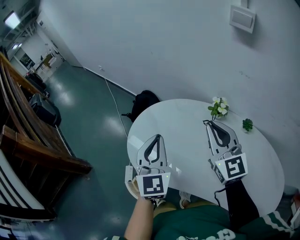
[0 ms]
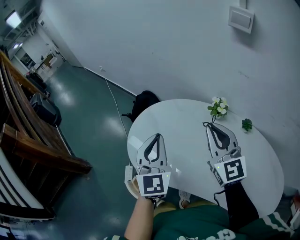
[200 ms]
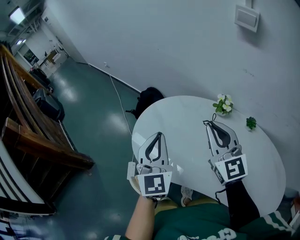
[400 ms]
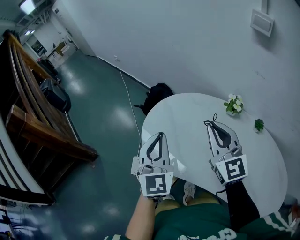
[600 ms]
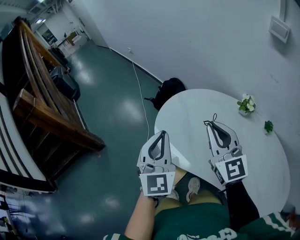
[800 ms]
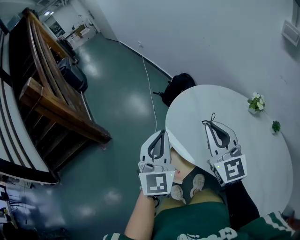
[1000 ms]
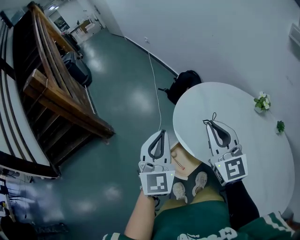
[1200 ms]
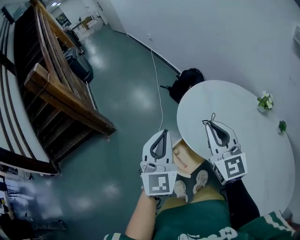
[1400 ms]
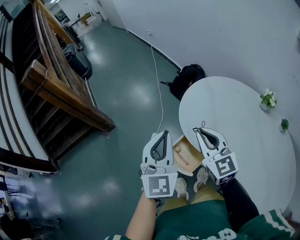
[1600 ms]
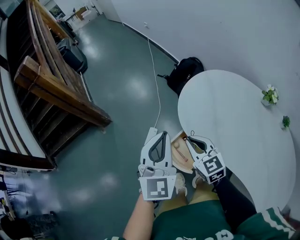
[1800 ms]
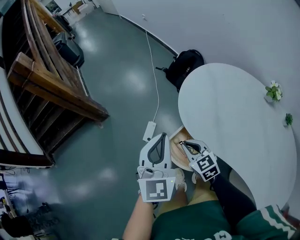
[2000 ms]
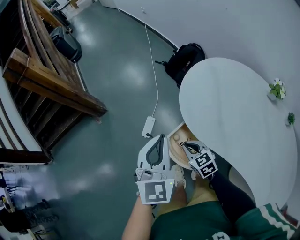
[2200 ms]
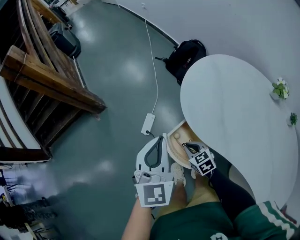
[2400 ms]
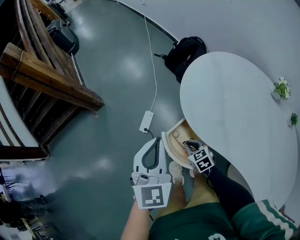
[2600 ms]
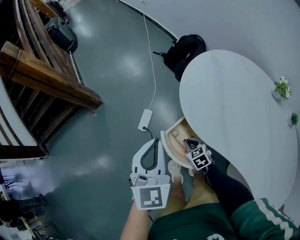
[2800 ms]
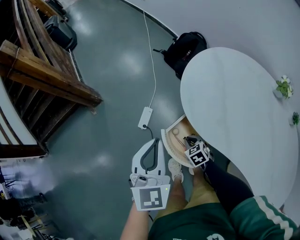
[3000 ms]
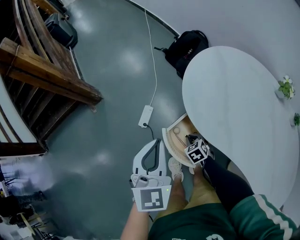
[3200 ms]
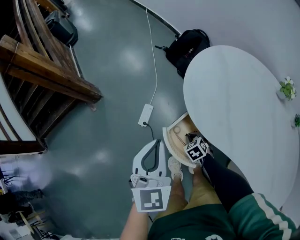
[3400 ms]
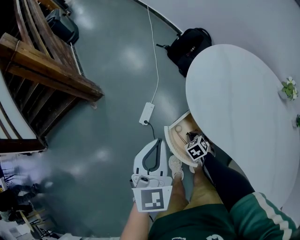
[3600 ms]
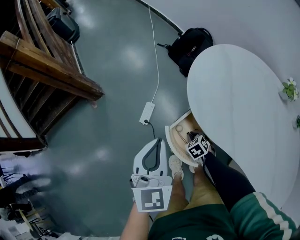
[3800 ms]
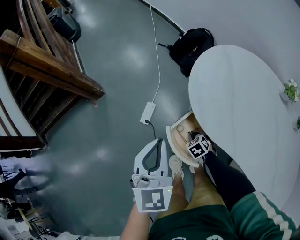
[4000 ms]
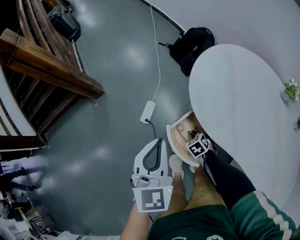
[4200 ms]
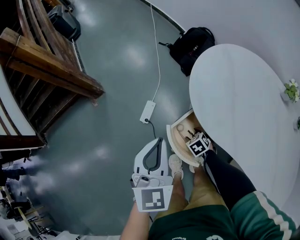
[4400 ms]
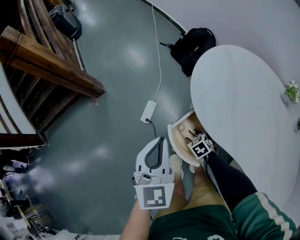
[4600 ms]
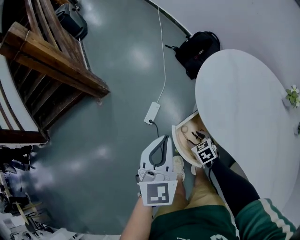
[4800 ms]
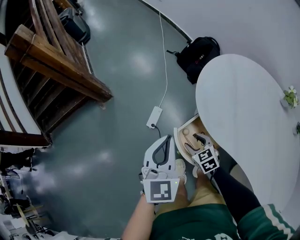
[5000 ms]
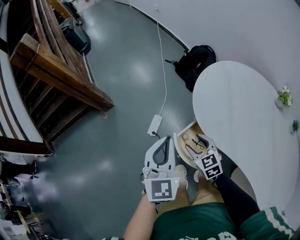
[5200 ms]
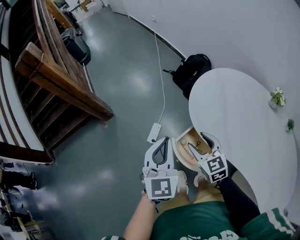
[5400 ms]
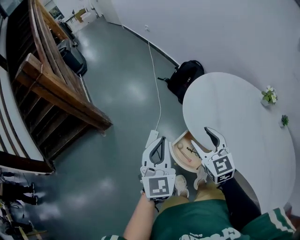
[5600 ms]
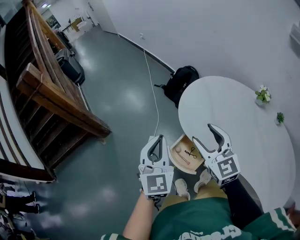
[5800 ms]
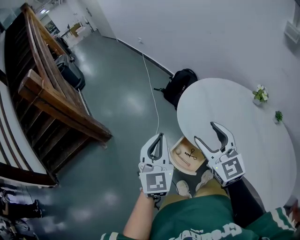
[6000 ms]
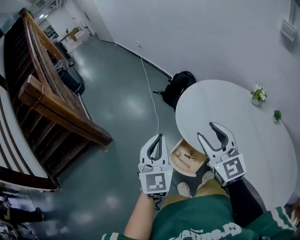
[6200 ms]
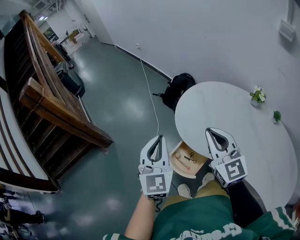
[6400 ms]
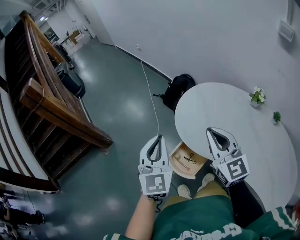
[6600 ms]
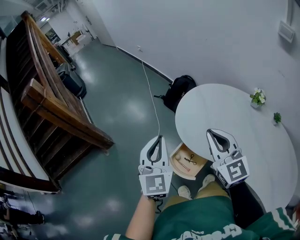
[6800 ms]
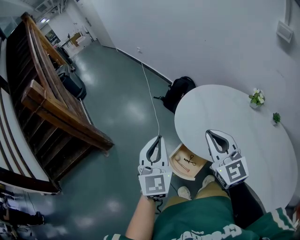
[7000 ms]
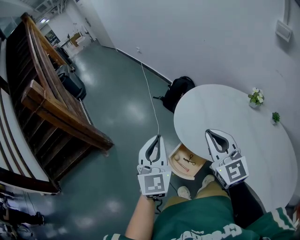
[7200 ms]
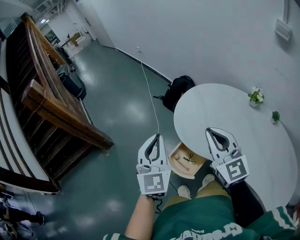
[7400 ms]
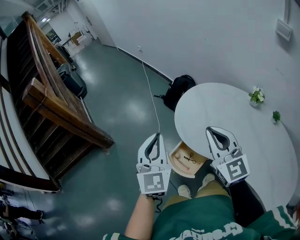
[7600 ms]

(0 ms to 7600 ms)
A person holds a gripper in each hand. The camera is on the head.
0 ms - 1600 ms: The right gripper goes approximately 35 cm to the left, and turns by approximately 30 degrees. Meanwhile the left gripper shifts roughly 30 cm to the left and backward.
1600 ms - 3000 ms: The right gripper is displaced downward by about 40 cm, and tilts its fingers about 50 degrees downward. Meanwhile the left gripper moves downward, about 15 cm.
3000 ms - 4600 ms: The right gripper opens its fingers.
4600 ms - 6000 ms: The left gripper shifts about 15 cm upward. Meanwhile the right gripper travels upward by approximately 50 cm, and tips its fingers upward by roughly 60 degrees.
6000 ms - 7600 ms: The right gripper ends up some 5 cm from where it was, and closes.

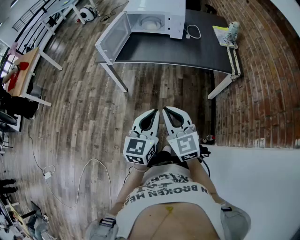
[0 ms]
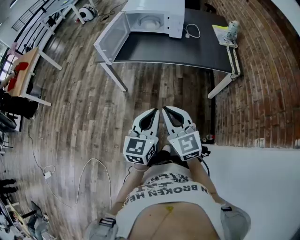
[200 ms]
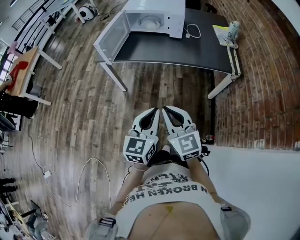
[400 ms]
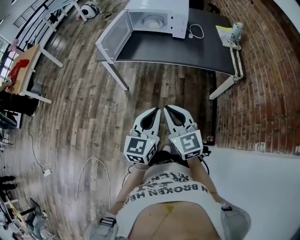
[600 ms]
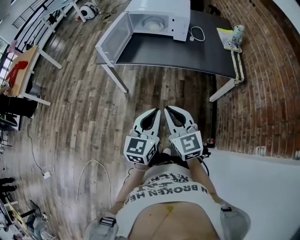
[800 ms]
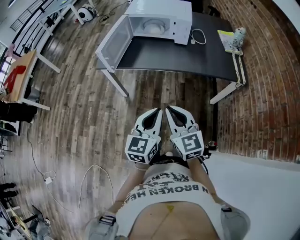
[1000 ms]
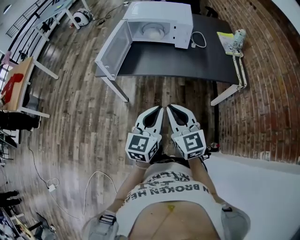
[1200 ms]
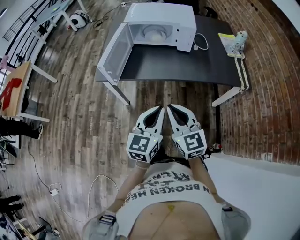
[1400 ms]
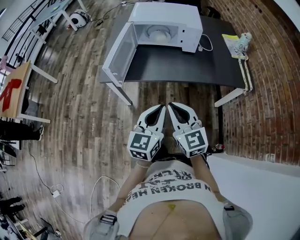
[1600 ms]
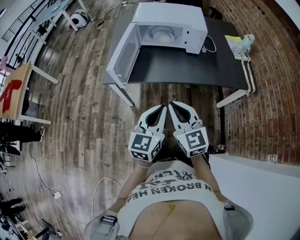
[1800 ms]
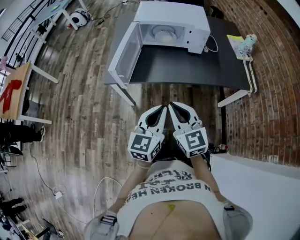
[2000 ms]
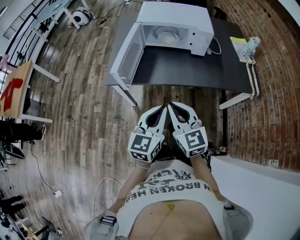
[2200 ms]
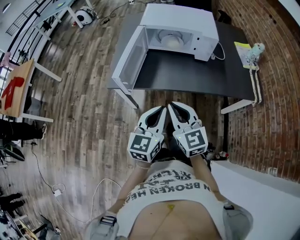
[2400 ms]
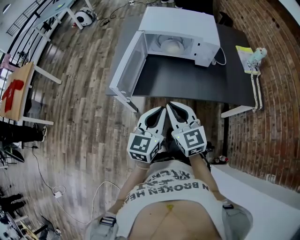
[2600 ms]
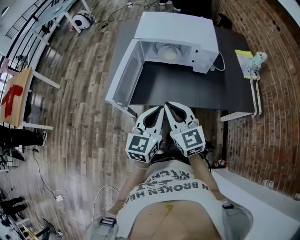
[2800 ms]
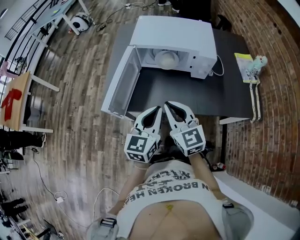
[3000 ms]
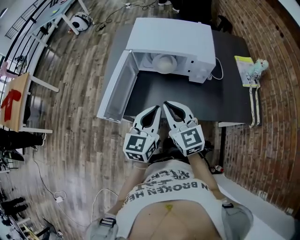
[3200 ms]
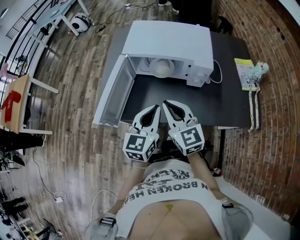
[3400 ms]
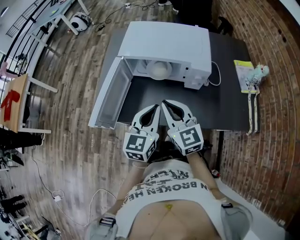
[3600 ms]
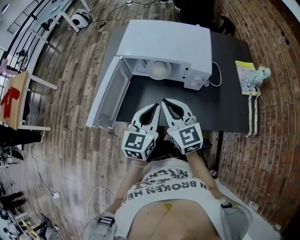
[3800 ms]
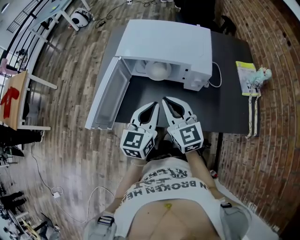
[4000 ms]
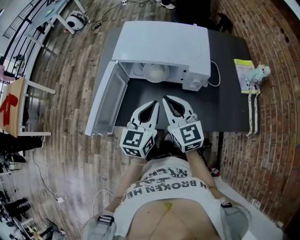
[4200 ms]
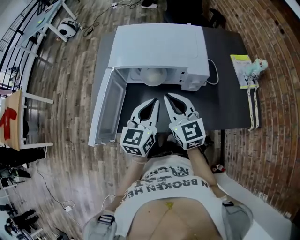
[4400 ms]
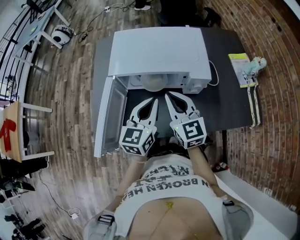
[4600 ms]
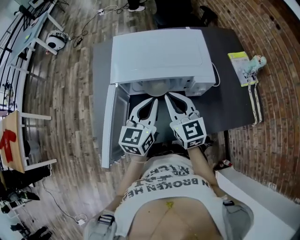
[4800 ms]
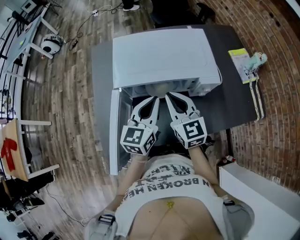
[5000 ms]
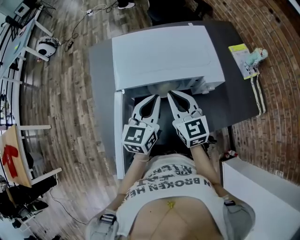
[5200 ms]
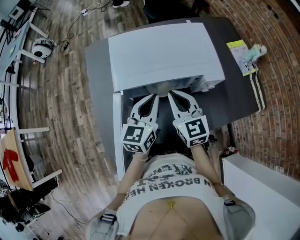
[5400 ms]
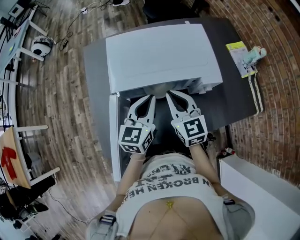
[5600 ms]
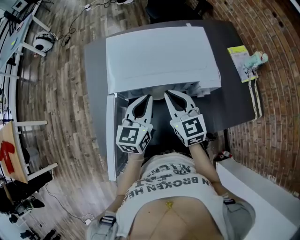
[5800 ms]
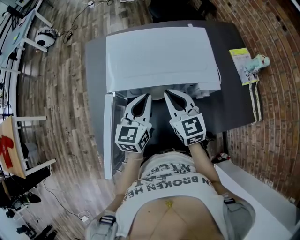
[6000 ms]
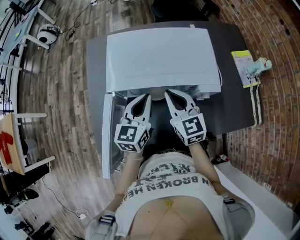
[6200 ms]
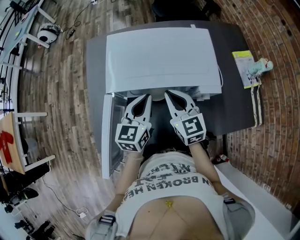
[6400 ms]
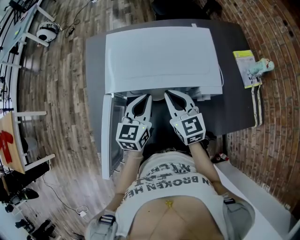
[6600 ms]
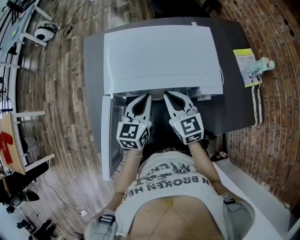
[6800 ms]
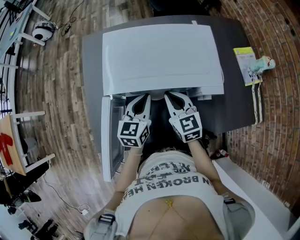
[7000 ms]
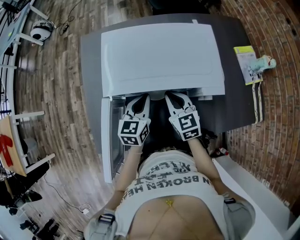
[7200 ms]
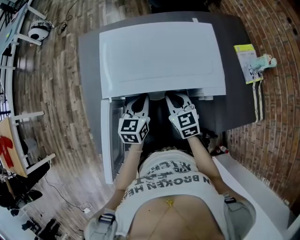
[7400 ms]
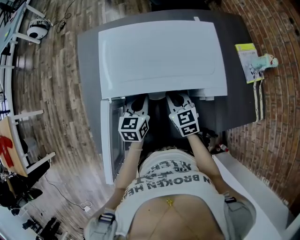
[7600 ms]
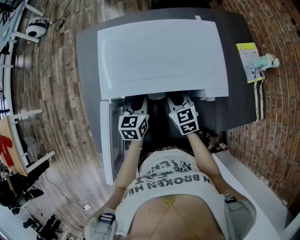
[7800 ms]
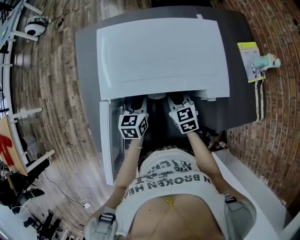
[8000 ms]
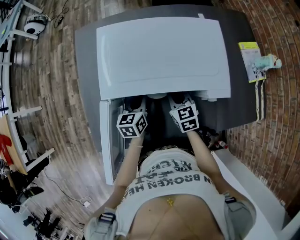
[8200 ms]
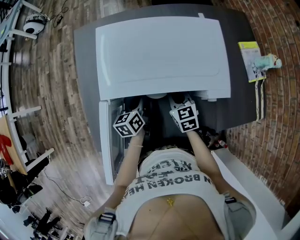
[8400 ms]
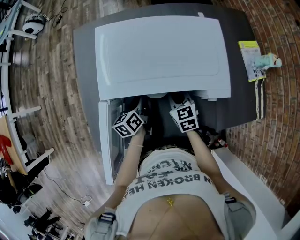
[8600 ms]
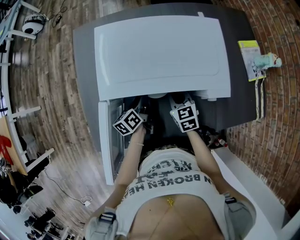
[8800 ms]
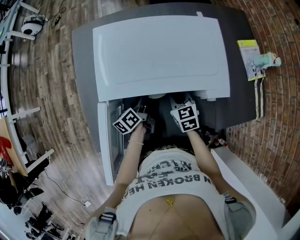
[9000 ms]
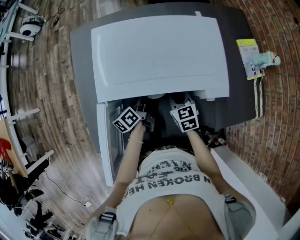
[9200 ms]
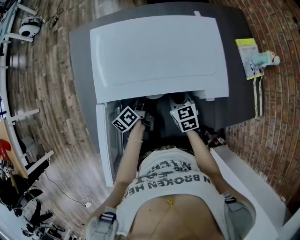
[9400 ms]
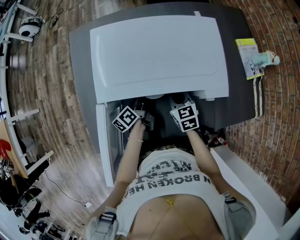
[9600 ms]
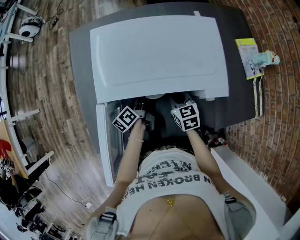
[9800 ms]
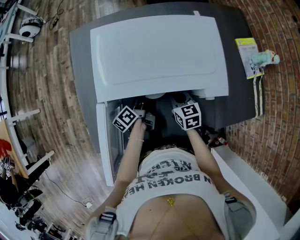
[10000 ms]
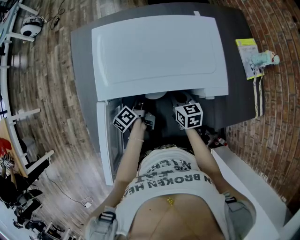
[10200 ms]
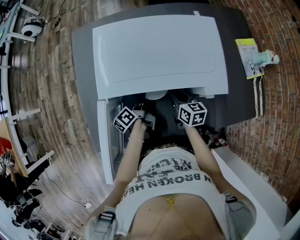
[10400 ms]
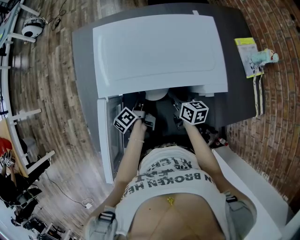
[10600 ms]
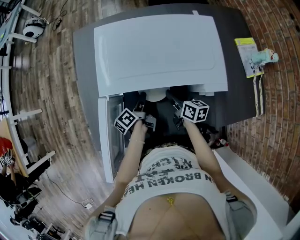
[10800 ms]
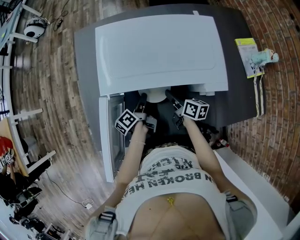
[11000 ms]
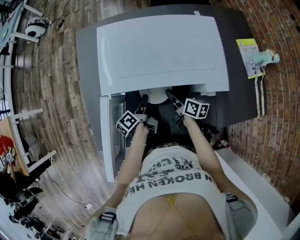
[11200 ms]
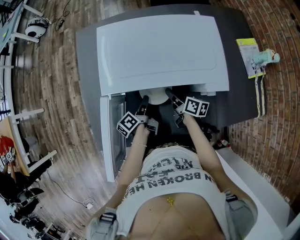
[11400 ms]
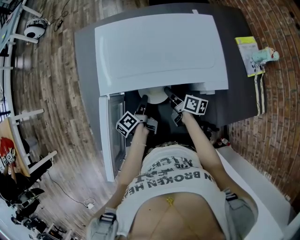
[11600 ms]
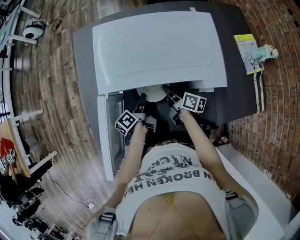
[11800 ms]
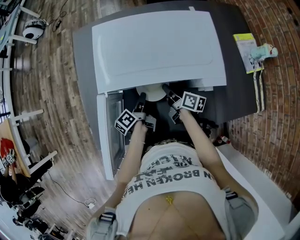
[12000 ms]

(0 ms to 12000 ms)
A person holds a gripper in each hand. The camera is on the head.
0 ms - 1600 ms: Both grippers travel together forward and to the left, roughly 25 cm.
1600 ms - 3000 ms: Both grippers travel together forward, roughly 25 cm.
3000 ms - 4400 ms: The grippers both shift forward and to the right by some 20 cm.
4400 ms - 6000 ms: The right gripper shifts approximately 10 cm forward, while the left gripper travels forward and to the left by about 15 cm.
6000 ms - 7600 ms: The grippers both shift downward by about 15 cm.
7600 ms - 9000 ms: Both grippers move downward, approximately 5 cm. The left gripper twists approximately 50 degrees counterclockwise, seen from behind, and opens up.
9000 ms - 10400 ms: The right gripper turns by about 30 degrees.
10400 ms - 12000 ms: The right gripper turns by some 30 degrees.

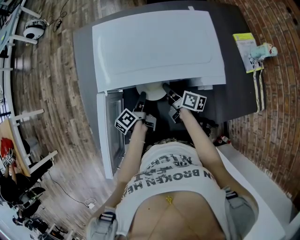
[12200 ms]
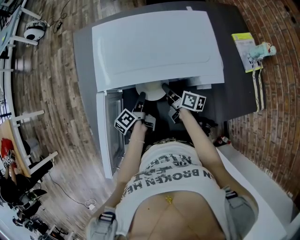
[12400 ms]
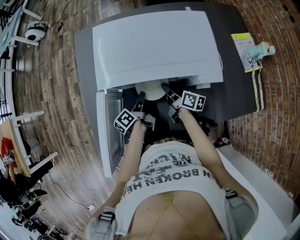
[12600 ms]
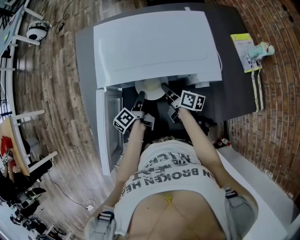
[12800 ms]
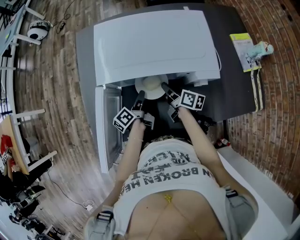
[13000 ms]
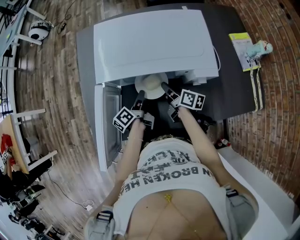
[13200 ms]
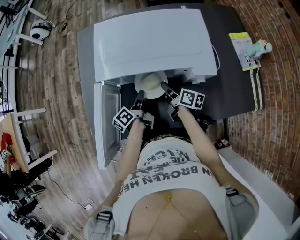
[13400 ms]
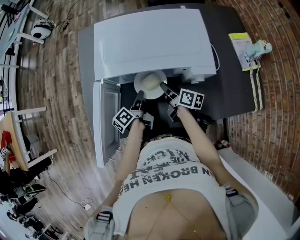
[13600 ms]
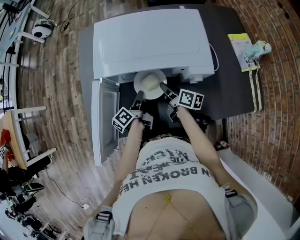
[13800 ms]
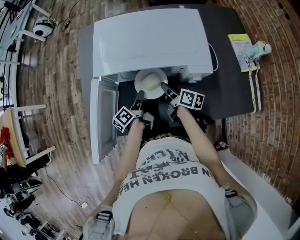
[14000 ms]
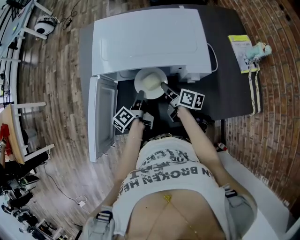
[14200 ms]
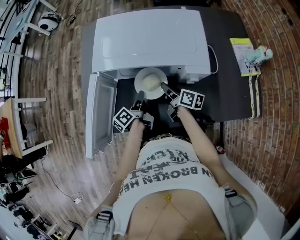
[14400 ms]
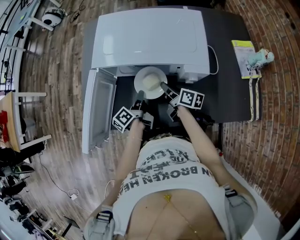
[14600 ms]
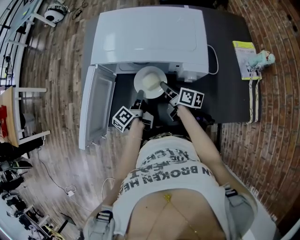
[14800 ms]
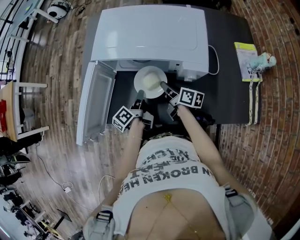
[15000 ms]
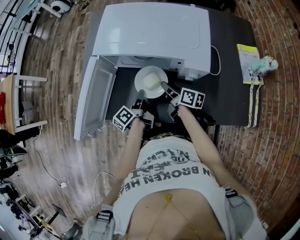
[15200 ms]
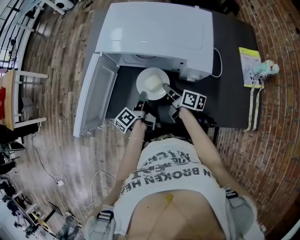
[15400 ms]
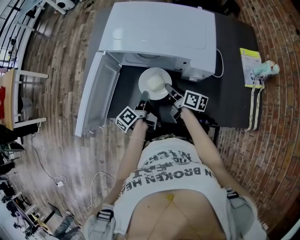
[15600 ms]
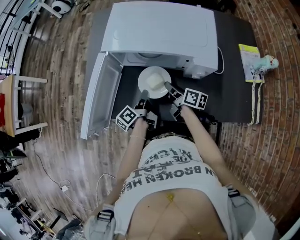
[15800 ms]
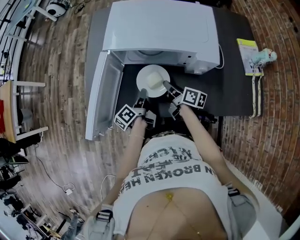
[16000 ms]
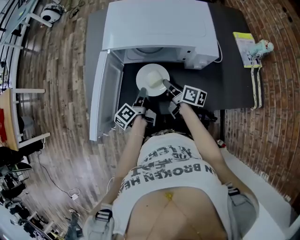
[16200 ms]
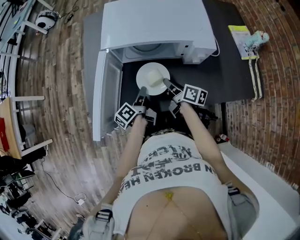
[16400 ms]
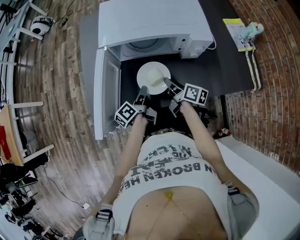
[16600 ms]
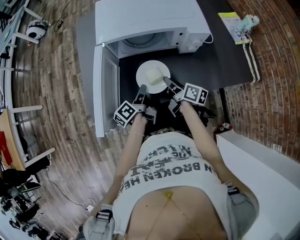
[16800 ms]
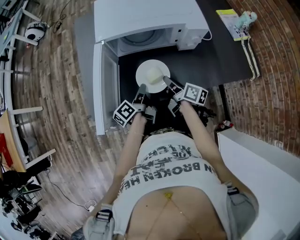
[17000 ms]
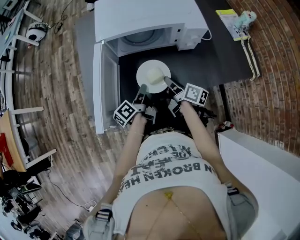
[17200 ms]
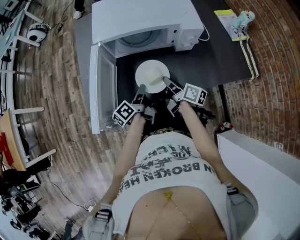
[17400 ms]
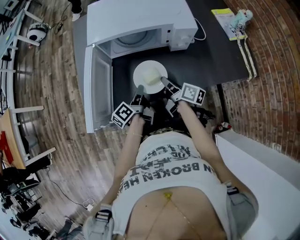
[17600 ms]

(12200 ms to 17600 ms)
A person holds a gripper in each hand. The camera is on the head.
12200 ms - 13600 ms: The grippers move only a little.
13600 ms - 15000 ms: The left gripper goes approximately 5 cm backward.
15000 ms - 16200 ms: Both grippers travel together to the left, roughly 5 cm.
16200 ms - 17600 ms: Both grippers move backward, about 5 cm.
